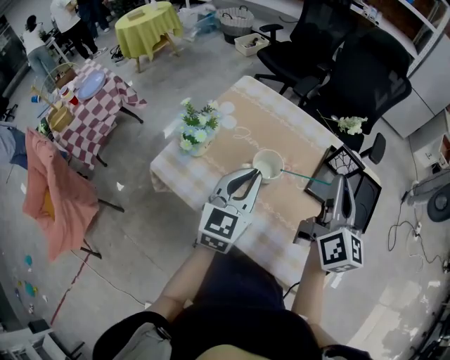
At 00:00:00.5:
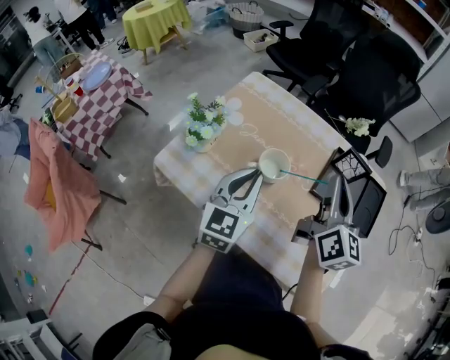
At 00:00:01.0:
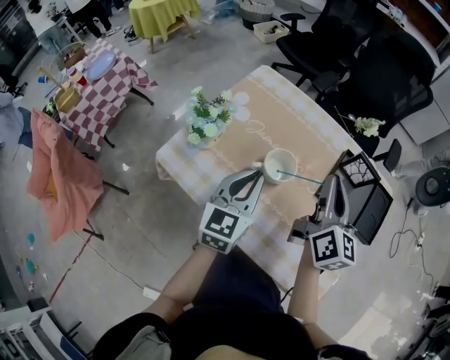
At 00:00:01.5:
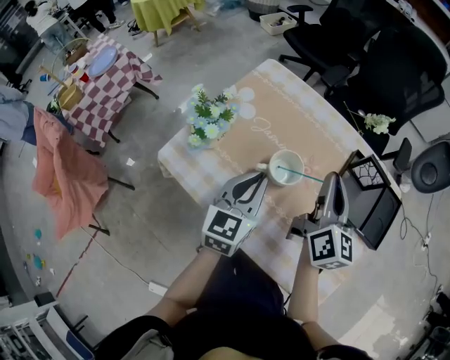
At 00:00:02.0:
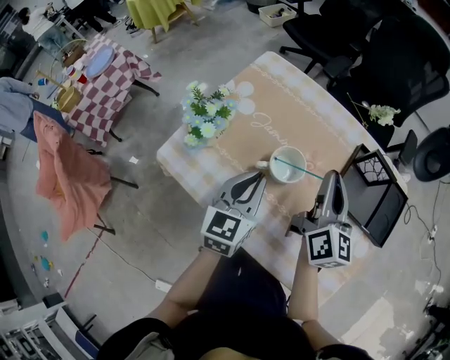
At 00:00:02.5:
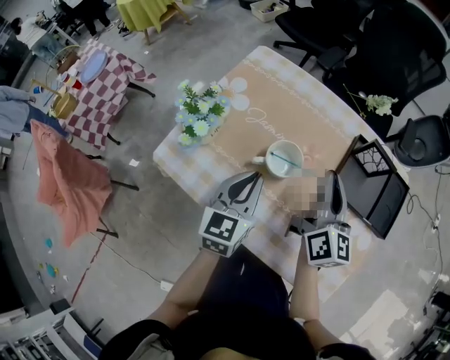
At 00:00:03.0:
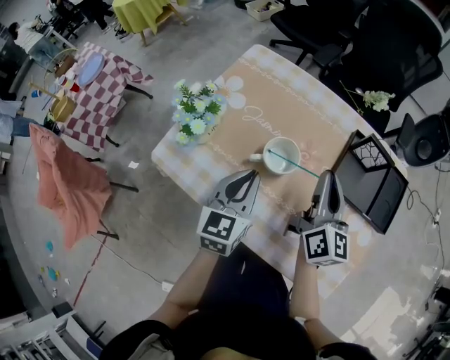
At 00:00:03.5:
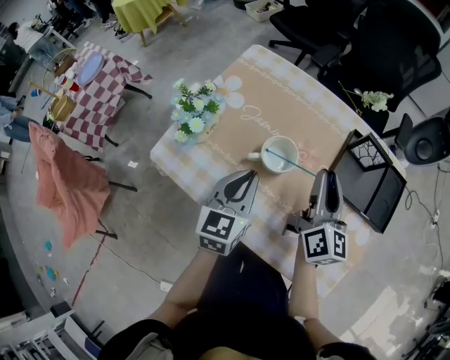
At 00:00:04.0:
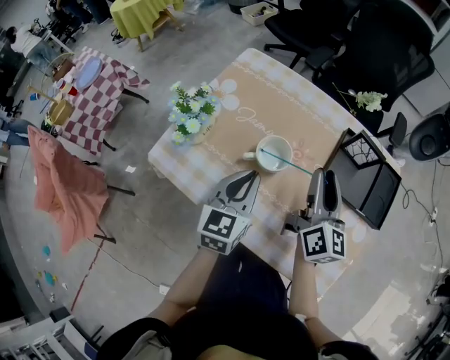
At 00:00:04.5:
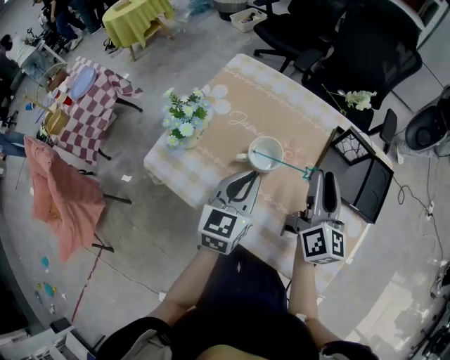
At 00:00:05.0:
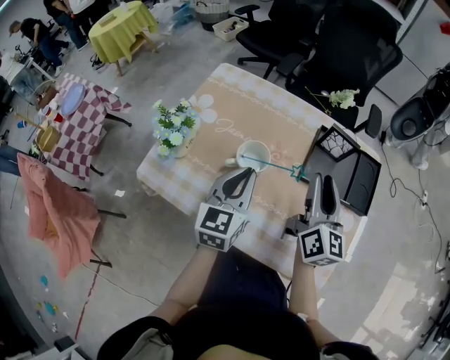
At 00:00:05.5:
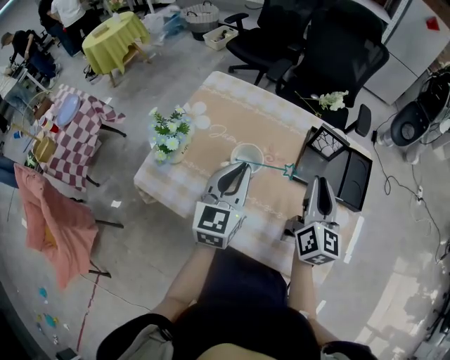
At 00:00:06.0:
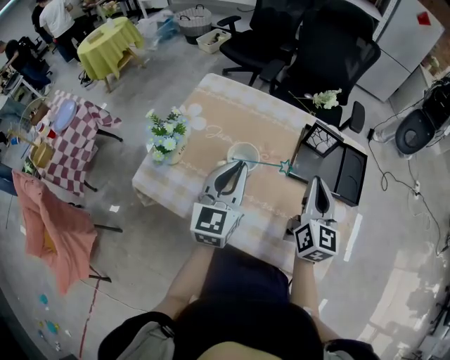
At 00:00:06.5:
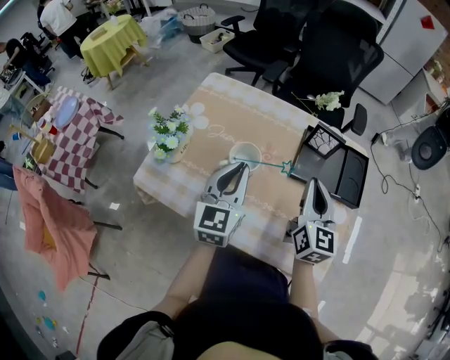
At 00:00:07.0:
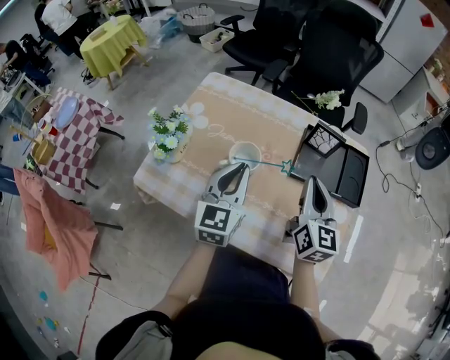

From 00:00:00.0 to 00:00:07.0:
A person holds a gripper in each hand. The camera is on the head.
From 00:00:00.0 to 00:00:02.0: The right gripper moves downward, to the left and forward, some 15 cm. Meanwhile the left gripper goes roughly 10 cm downward.
From 00:00:02.0 to 00:00:03.5: The grippers make only small movements.
From 00:00:03.5 to 00:00:05.0: The right gripper moves to the right, roughly 5 cm; the left gripper ends up roughly 5 cm from where it was.
From 00:00:05.0 to 00:00:07.0: The right gripper closes its fingers.

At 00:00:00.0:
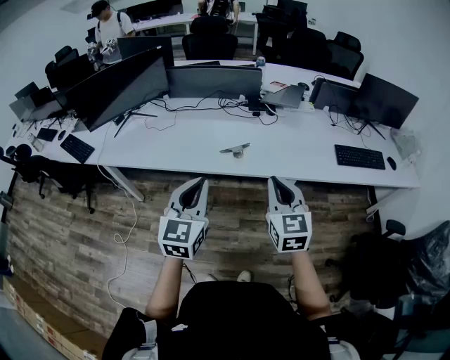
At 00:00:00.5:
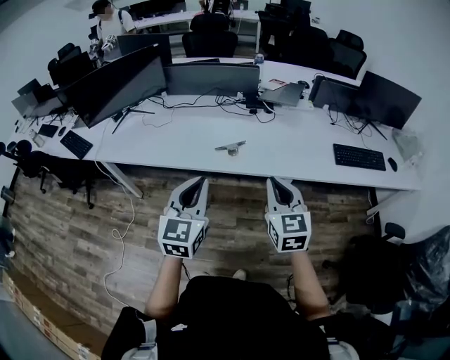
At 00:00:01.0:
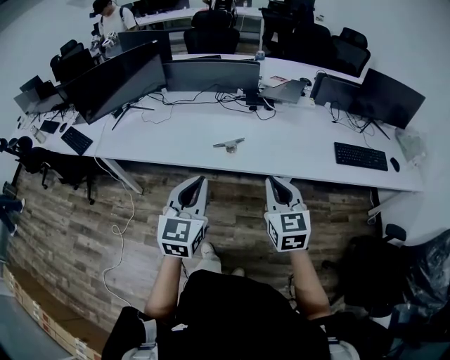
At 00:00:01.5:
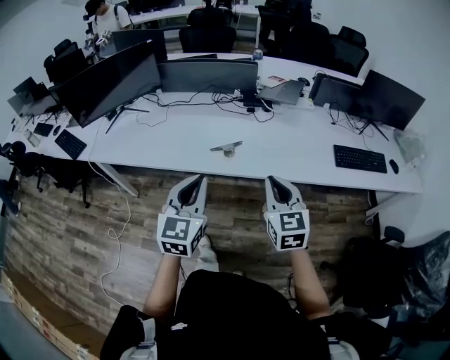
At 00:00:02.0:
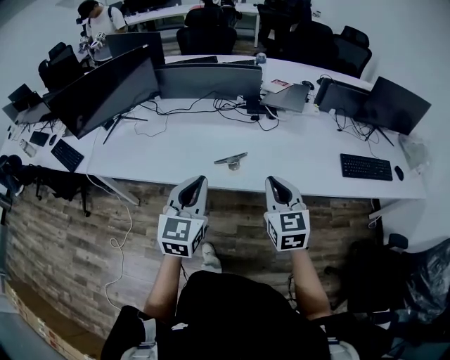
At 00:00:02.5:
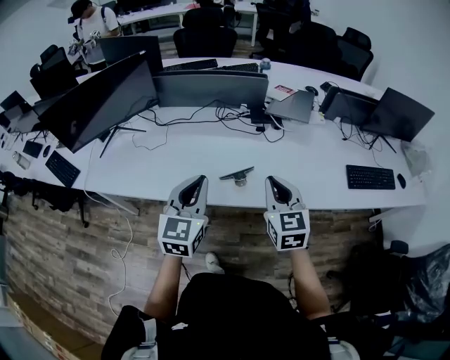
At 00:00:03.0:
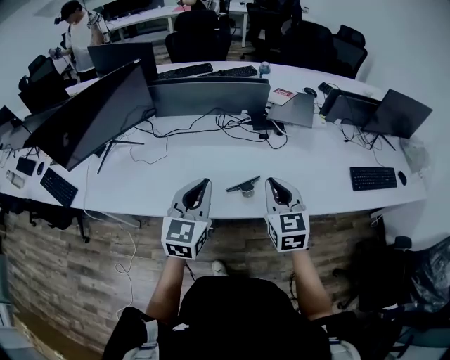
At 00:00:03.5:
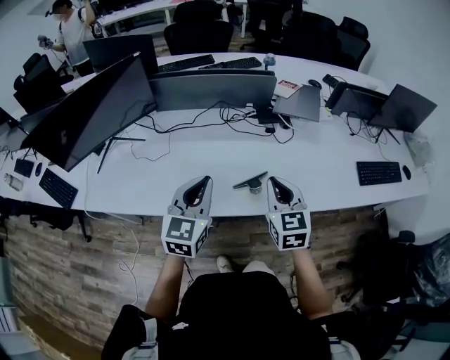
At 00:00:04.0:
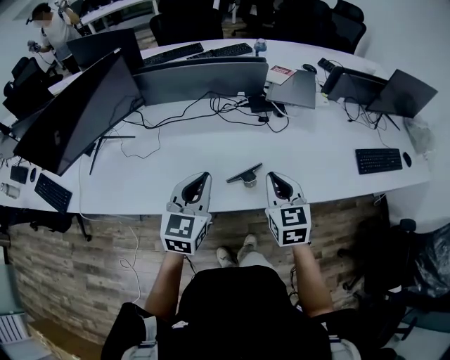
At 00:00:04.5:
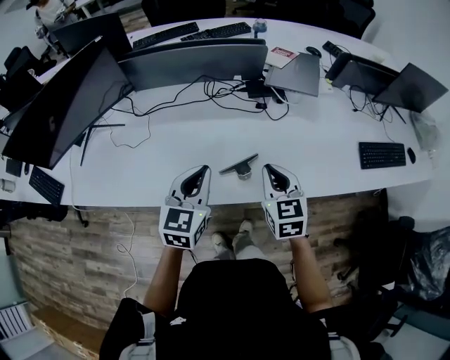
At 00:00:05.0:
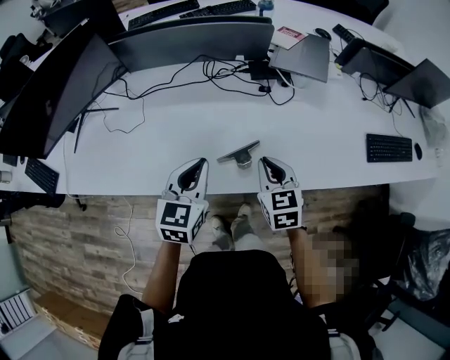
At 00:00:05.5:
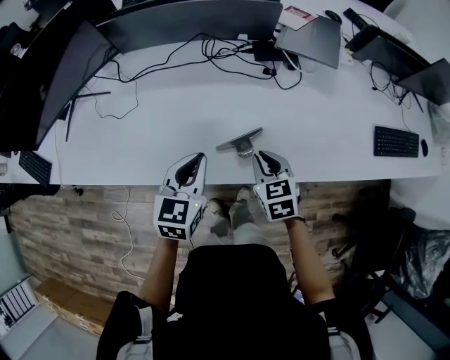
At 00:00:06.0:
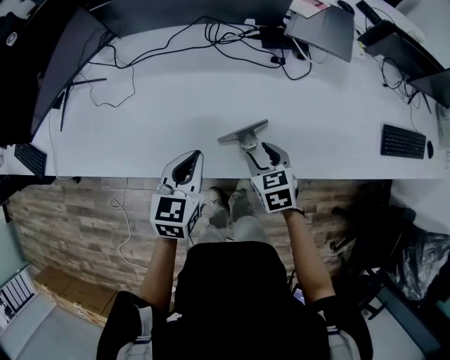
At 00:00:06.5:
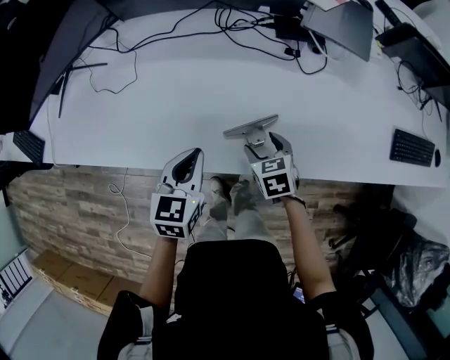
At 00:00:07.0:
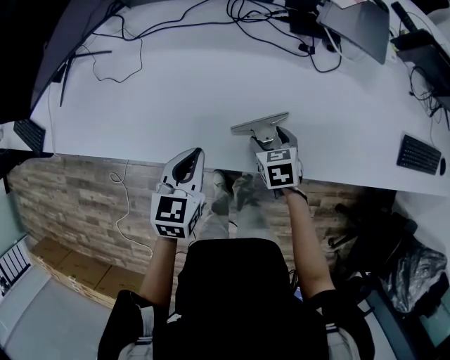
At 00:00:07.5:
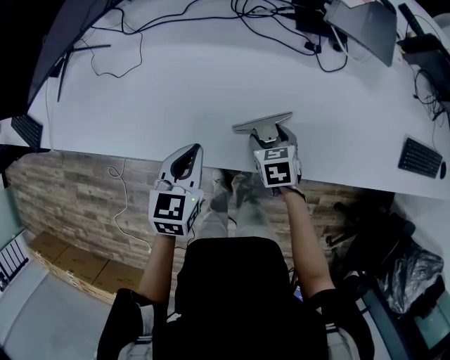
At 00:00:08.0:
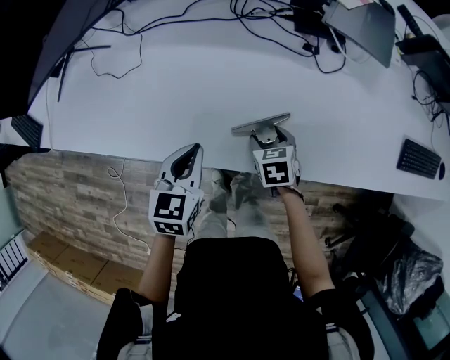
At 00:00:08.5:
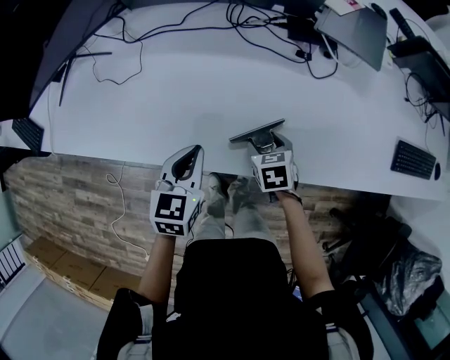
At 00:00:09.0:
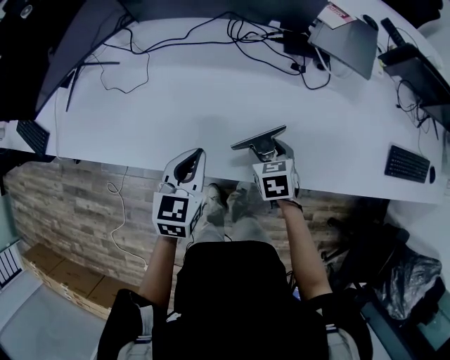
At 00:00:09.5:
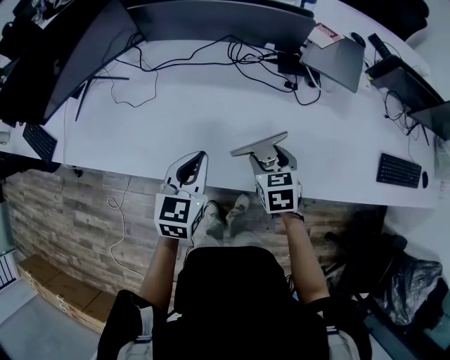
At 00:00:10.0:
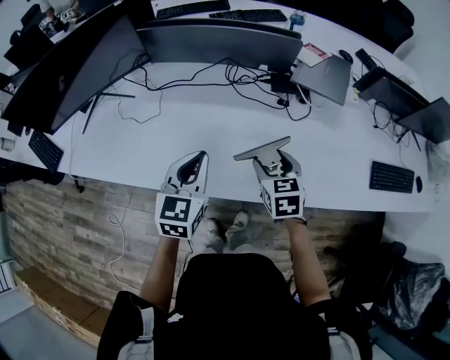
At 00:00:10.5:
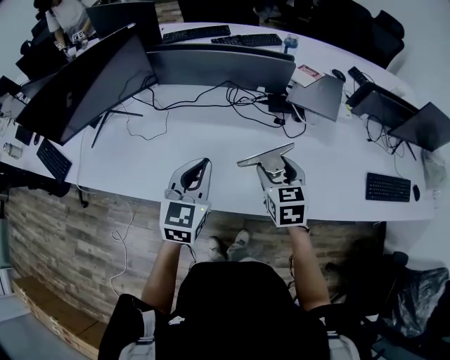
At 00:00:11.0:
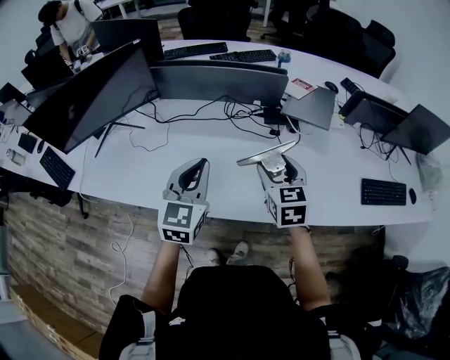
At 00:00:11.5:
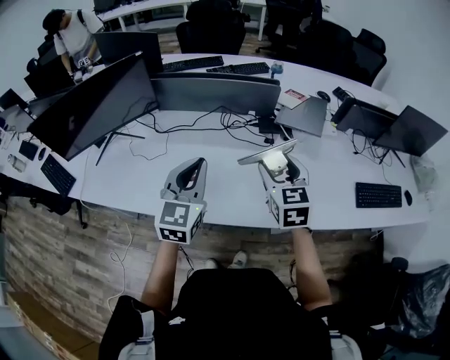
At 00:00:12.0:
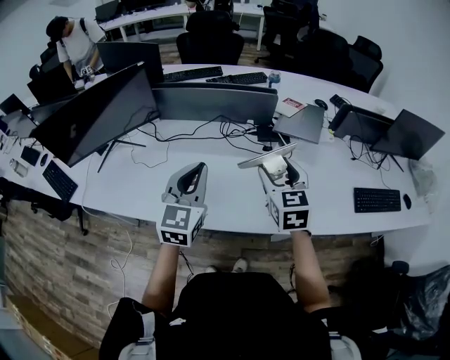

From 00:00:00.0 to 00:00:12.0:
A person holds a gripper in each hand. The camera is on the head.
From 00:00:00.0 to 00:00:02.0: Both grippers move forward, approximately 15 cm.
From 00:00:02.0 to 00:00:04.0: Both grippers travel together forward and to the left, about 20 cm.
From 00:00:04.0 to 00:00:06.0: Both grippers move downward, about 20 cm. The right gripper turns by approximately 30 degrees, and opens, while the left gripper turns by about 20 degrees.
From 00:00:06.0 to 00:00:08.0: The left gripper heads downward, covering about 5 cm. Meanwhile the right gripper heads downward, covering about 10 cm, and opens up.
From 00:00:08.0 to 00:00:10.0: The grippers both shift upward by some 20 cm. The right gripper turns by about 20 degrees.
From 00:00:10.0 to 00:00:12.0: The two grippers go about 15 cm upward. The right gripper rotates roughly 20 degrees.

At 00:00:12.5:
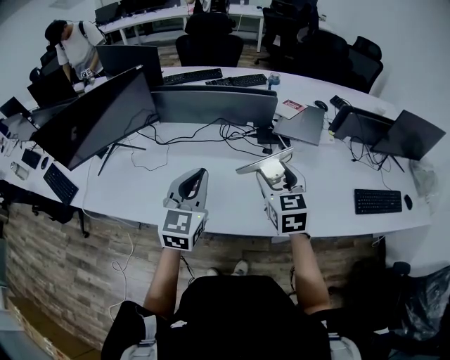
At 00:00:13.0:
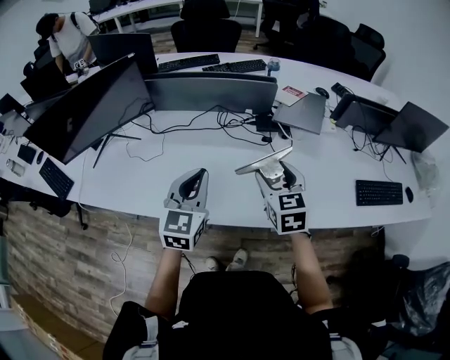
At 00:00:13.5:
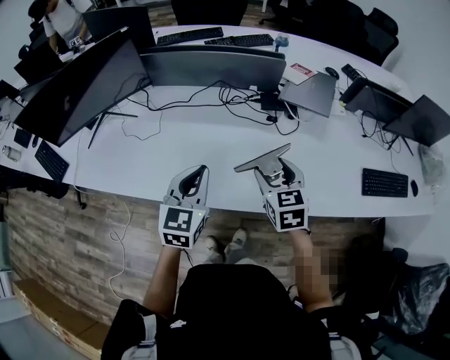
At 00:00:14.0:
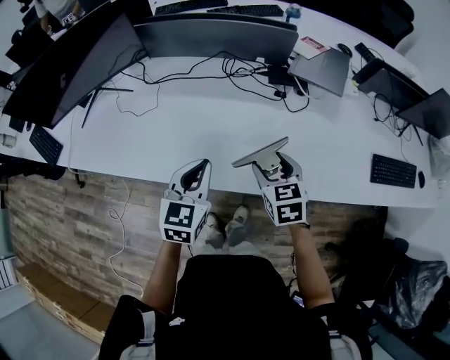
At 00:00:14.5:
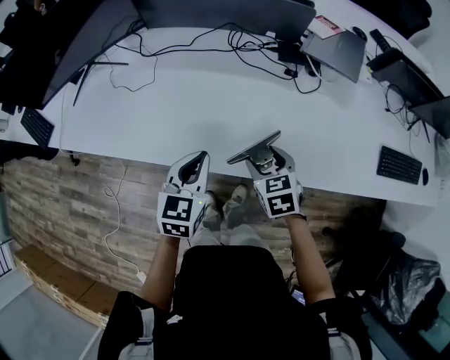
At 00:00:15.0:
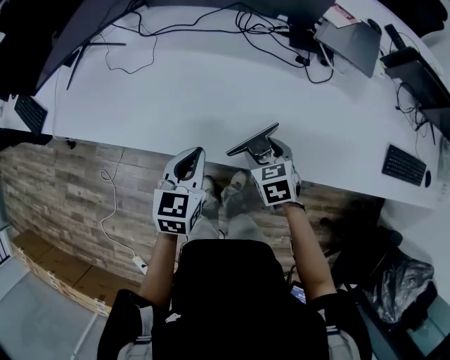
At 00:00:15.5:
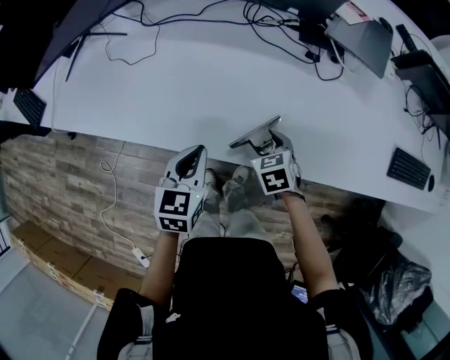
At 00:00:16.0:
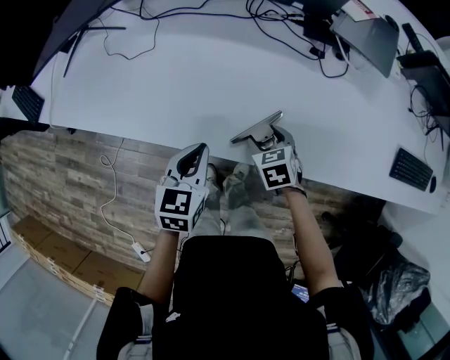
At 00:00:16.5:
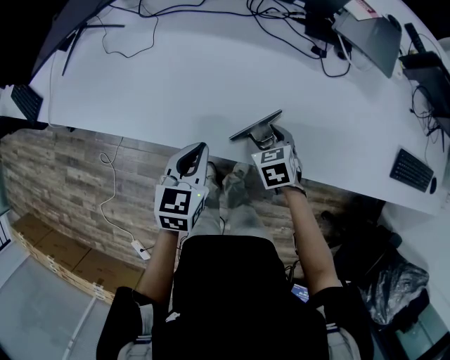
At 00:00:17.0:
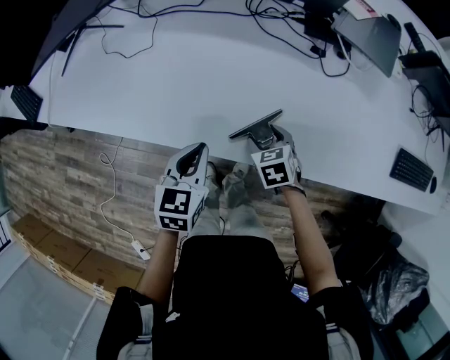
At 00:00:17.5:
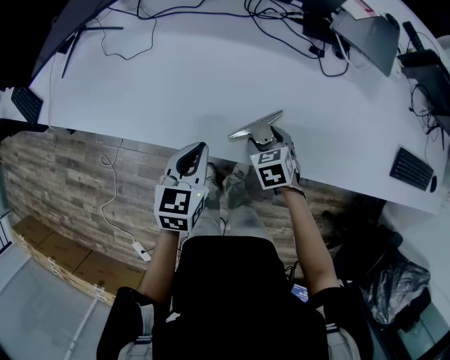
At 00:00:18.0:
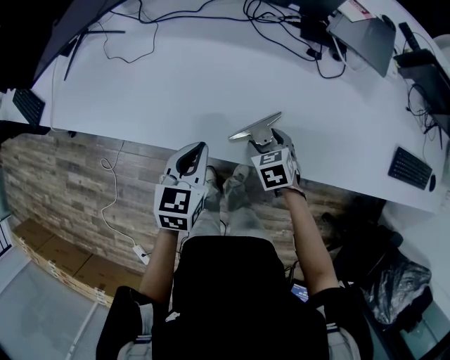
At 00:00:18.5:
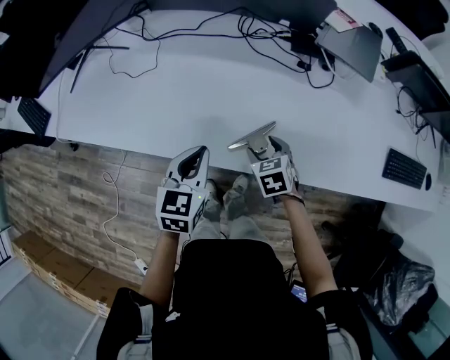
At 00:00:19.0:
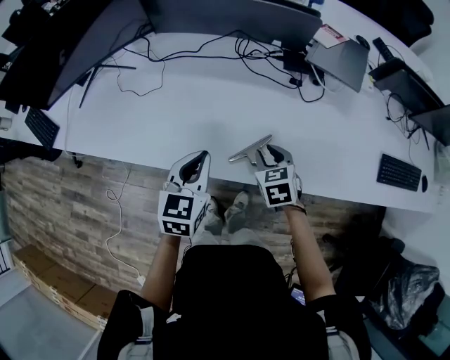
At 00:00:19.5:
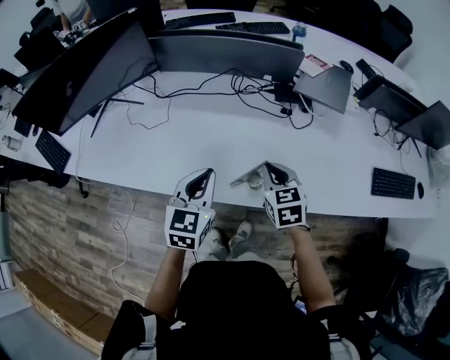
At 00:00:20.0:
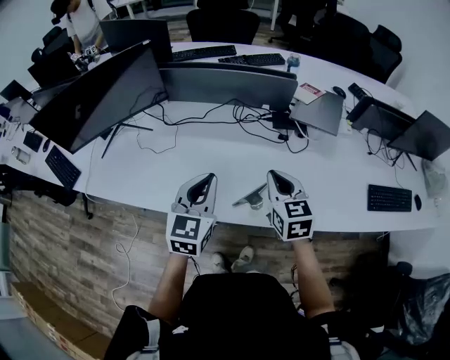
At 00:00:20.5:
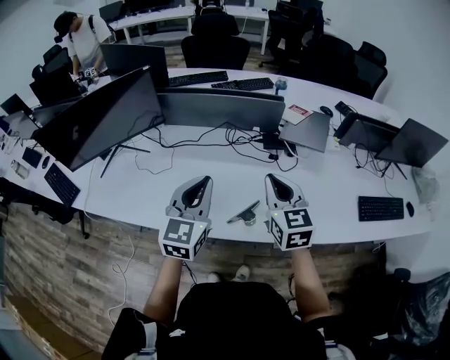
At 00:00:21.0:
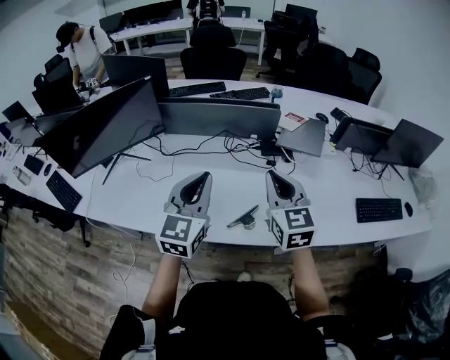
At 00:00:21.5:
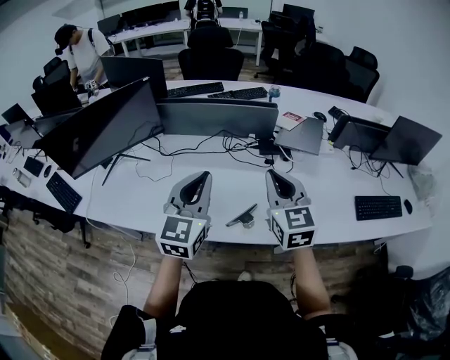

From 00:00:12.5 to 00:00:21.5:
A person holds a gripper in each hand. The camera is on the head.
From 00:00:12.5 to 00:00:14.5: The grippers both shift downward by about 25 cm. The right gripper rotates about 30 degrees. The left gripper changes its angle by approximately 20 degrees.
From 00:00:14.5 to 00:00:17.0: The right gripper moves downward, approximately 15 cm, while the left gripper moves downward, some 10 cm.
From 00:00:17.0 to 00:00:19.5: The grippers both shift upward by some 20 cm. The right gripper swivels approximately 20 degrees, and closes up.
From 00:00:19.5 to 00:00:21.5: Both grippers move upward, some 20 cm. The right gripper swivels some 30 degrees, while the left gripper turns by approximately 20 degrees.
